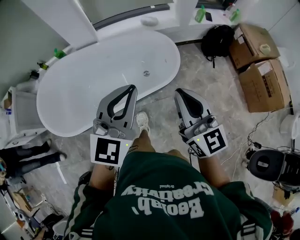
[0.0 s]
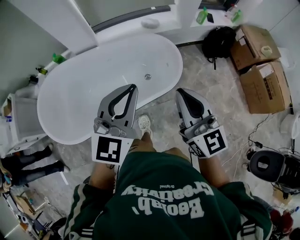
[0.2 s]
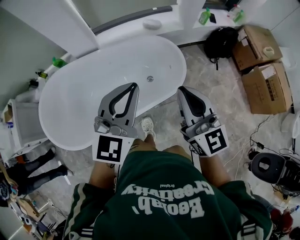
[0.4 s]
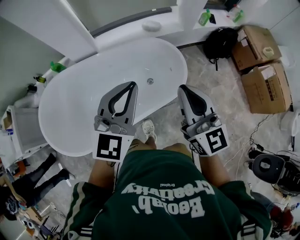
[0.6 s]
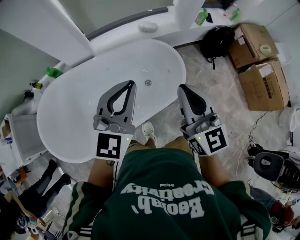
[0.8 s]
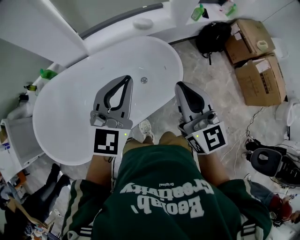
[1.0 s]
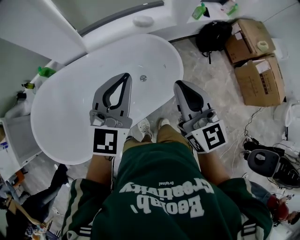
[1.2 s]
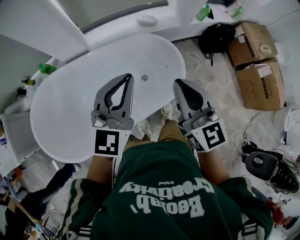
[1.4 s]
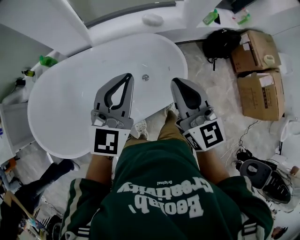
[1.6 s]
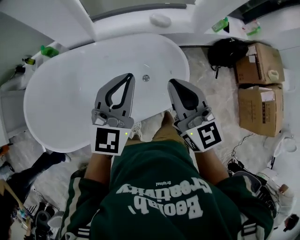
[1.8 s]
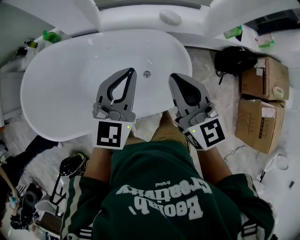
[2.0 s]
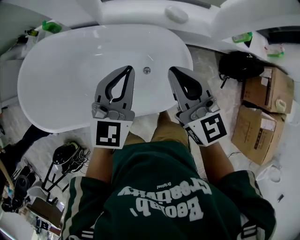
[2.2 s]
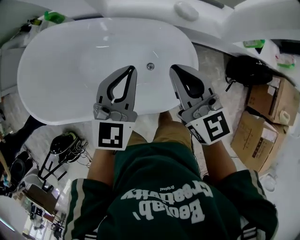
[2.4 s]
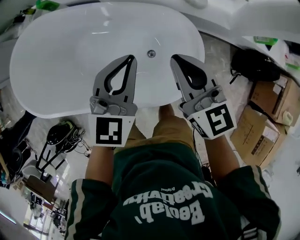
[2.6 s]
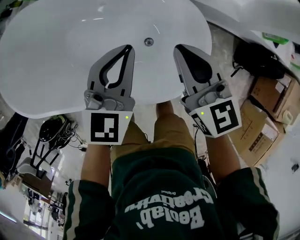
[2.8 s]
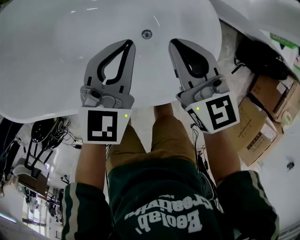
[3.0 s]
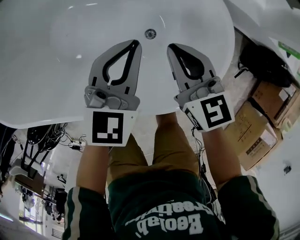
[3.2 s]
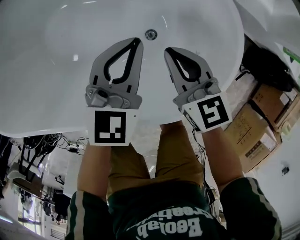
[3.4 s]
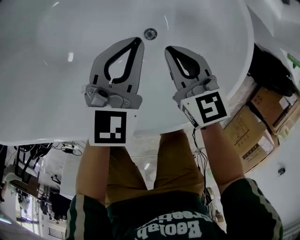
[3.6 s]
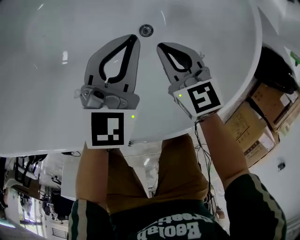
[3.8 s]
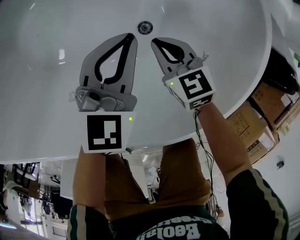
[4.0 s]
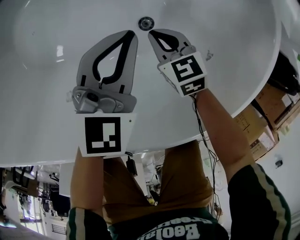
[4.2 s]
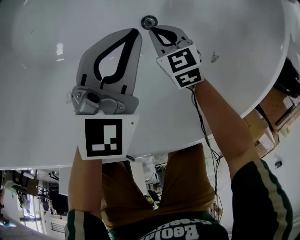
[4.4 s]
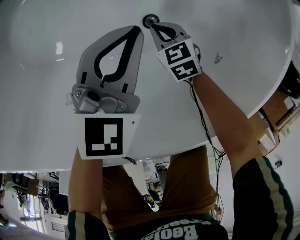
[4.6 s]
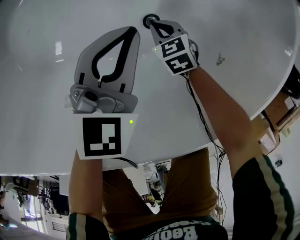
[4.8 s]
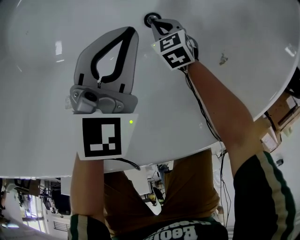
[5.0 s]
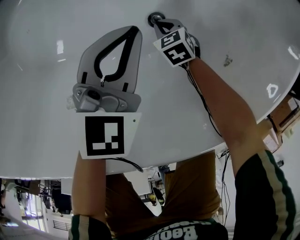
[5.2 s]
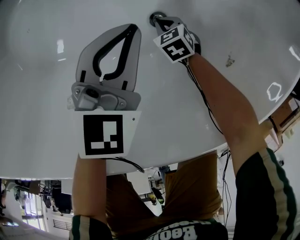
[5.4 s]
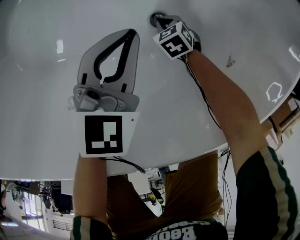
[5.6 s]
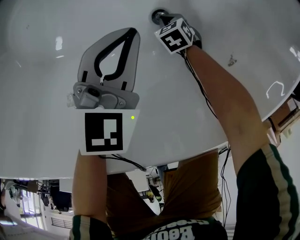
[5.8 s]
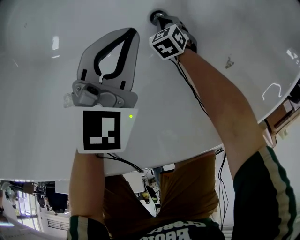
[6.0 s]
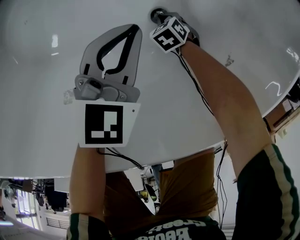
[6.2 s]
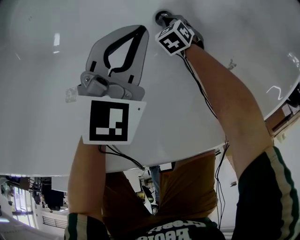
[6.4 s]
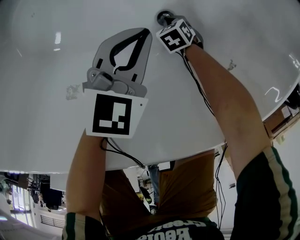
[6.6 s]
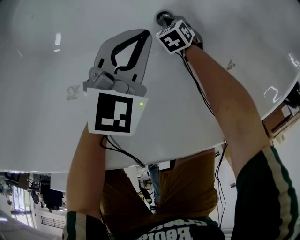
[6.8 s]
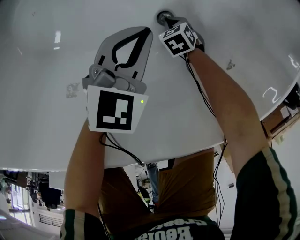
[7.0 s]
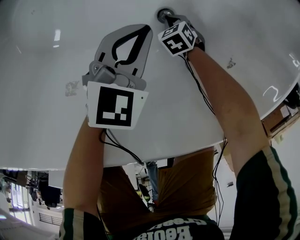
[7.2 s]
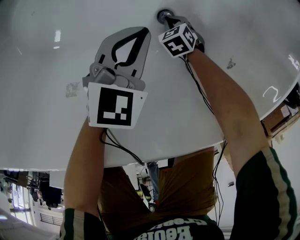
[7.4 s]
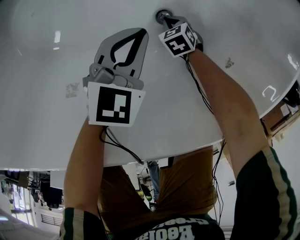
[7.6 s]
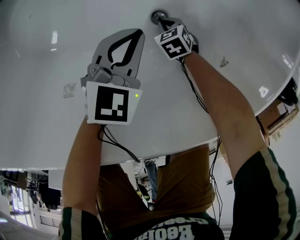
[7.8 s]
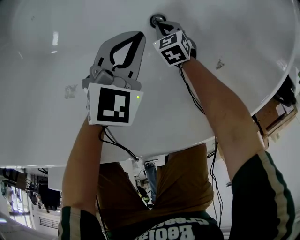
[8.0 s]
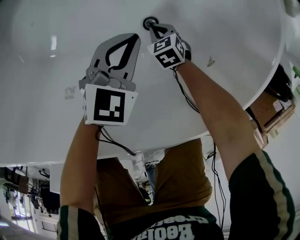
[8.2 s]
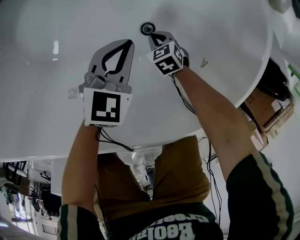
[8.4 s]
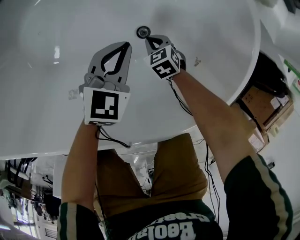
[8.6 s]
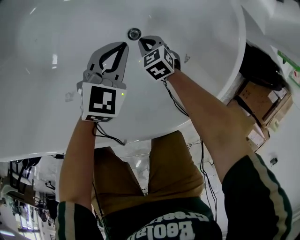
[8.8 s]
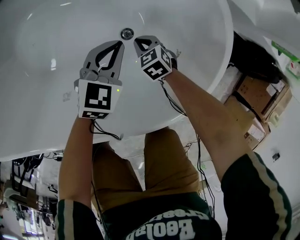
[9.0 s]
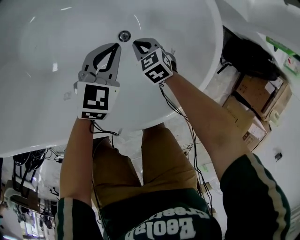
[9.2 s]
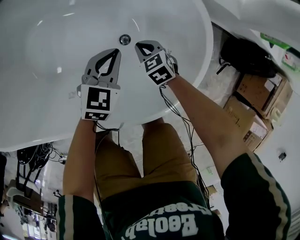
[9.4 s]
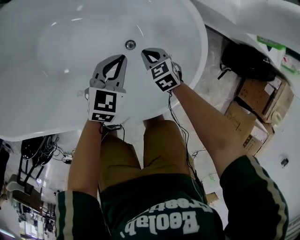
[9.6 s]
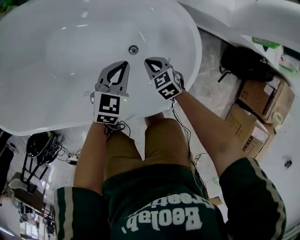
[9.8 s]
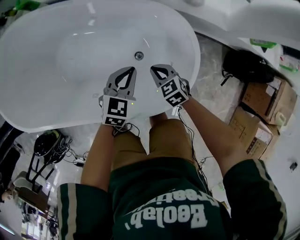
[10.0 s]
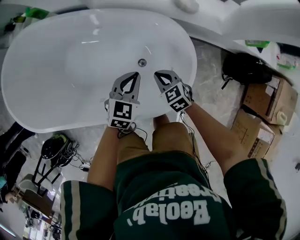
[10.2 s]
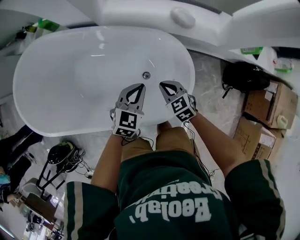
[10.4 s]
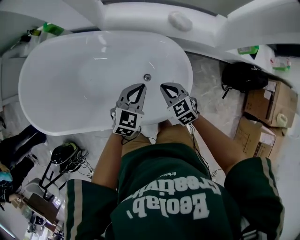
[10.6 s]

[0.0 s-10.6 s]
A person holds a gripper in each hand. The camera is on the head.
0.0 to 1.6 s: The two grippers go about 25 cm forward.
1.6 to 3.0 s: Both grippers move downward, about 35 cm. The right gripper rotates about 40 degrees; the left gripper rotates approximately 30 degrees.
3.0 to 4.6 s: The left gripper is displaced downward by some 25 cm; the right gripper heads downward, covering roughly 50 cm, and points its fingers about 30 degrees further downward.
4.6 to 6.0 s: The right gripper shifts roughly 15 cm downward, and turns by roughly 20 degrees; the left gripper travels downward by about 5 cm.
6.0 to 7.6 s: The grippers stay close to where they were, moving slightly.
7.6 to 9.0 s: The left gripper moves upward, about 10 cm, while the right gripper moves upward, about 20 cm.
9.0 to 10.6 s: The two grippers go about 35 cm upward. The right gripper swivels roughly 20 degrees.

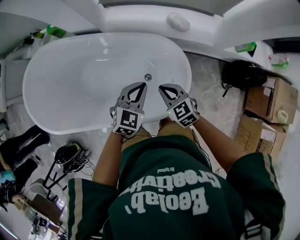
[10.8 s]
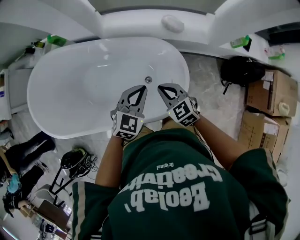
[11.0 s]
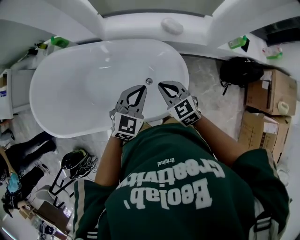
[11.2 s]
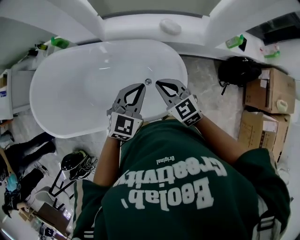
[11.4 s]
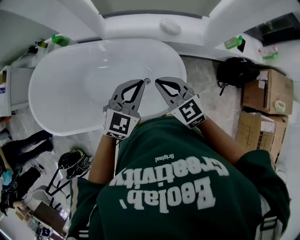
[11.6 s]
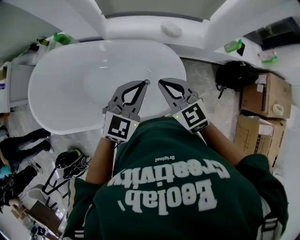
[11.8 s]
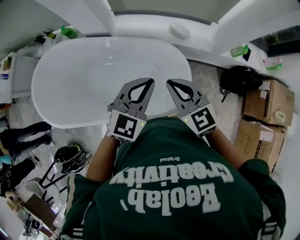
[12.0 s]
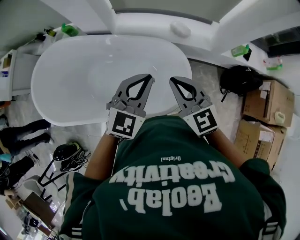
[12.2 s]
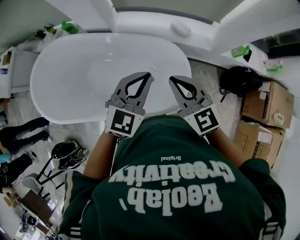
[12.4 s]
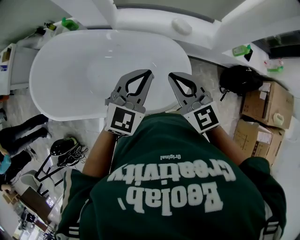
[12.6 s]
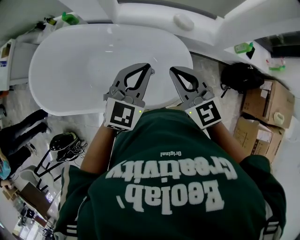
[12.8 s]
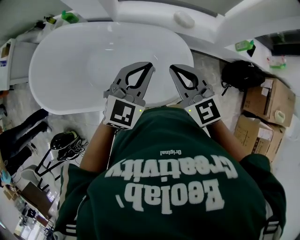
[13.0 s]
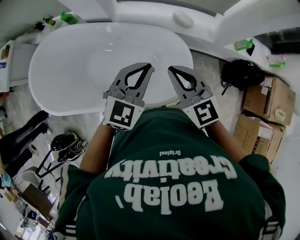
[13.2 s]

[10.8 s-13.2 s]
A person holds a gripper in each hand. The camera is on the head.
10.8 to 12.0 s: Both grippers move upward, about 20 cm.
12.0 to 13.2 s: The grippers make only small movements.

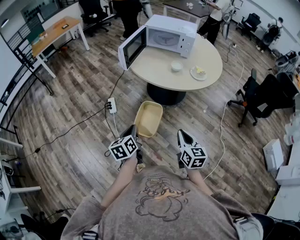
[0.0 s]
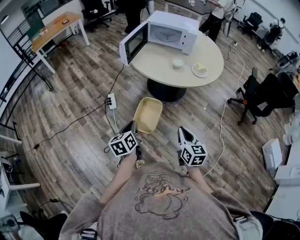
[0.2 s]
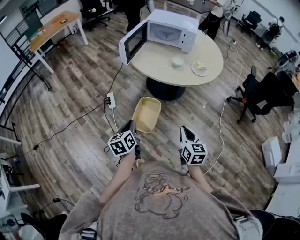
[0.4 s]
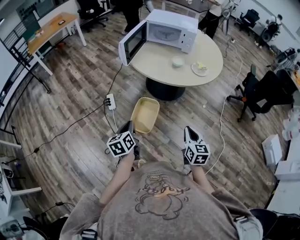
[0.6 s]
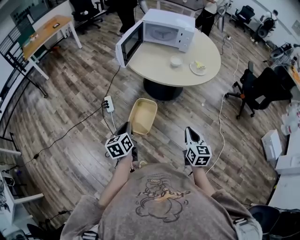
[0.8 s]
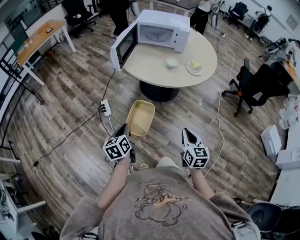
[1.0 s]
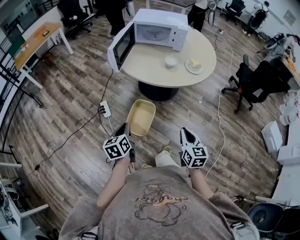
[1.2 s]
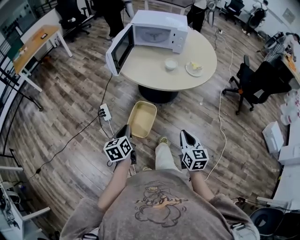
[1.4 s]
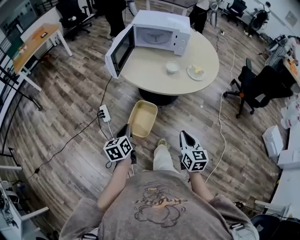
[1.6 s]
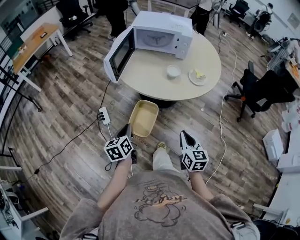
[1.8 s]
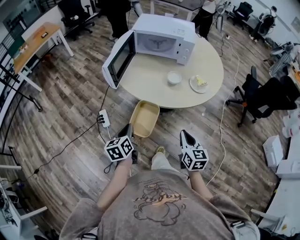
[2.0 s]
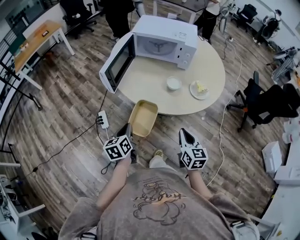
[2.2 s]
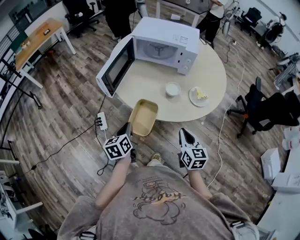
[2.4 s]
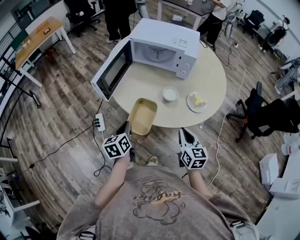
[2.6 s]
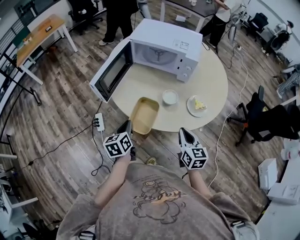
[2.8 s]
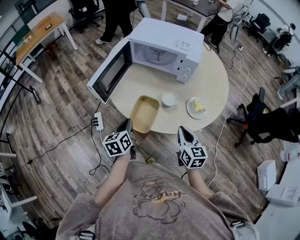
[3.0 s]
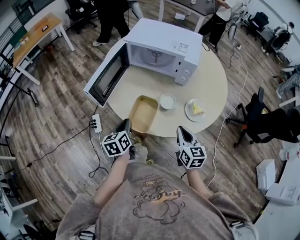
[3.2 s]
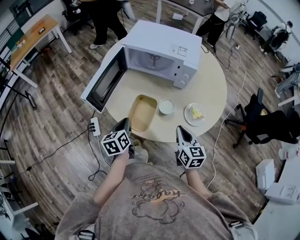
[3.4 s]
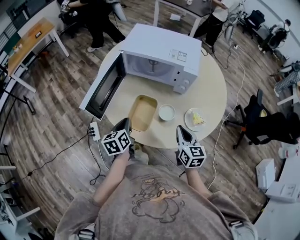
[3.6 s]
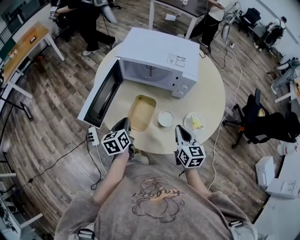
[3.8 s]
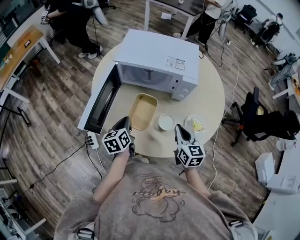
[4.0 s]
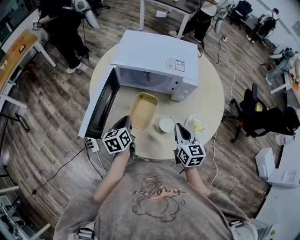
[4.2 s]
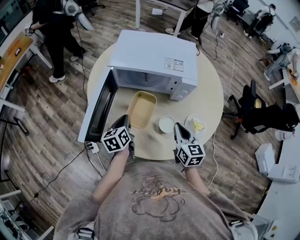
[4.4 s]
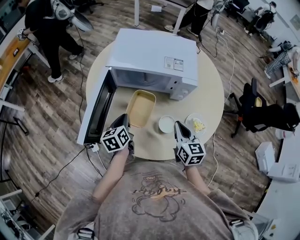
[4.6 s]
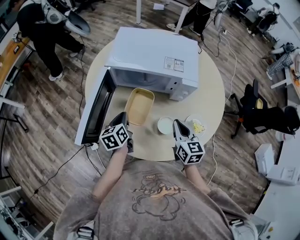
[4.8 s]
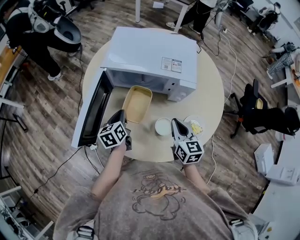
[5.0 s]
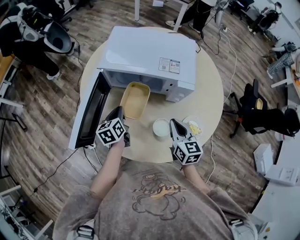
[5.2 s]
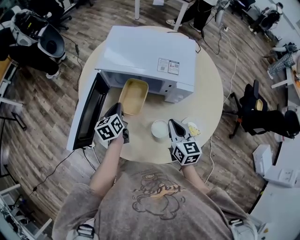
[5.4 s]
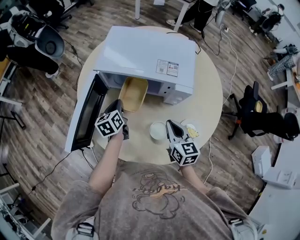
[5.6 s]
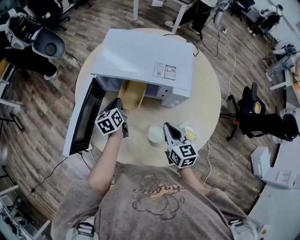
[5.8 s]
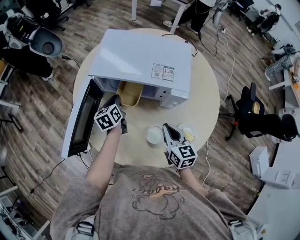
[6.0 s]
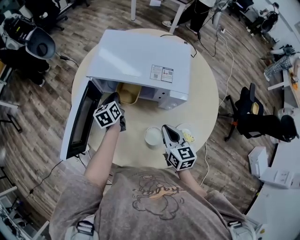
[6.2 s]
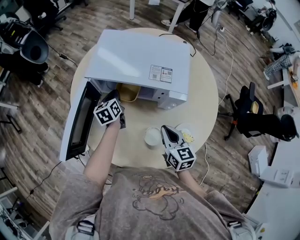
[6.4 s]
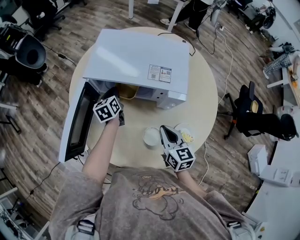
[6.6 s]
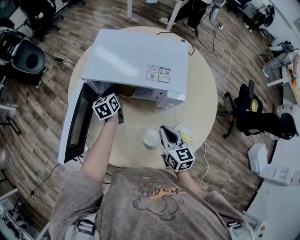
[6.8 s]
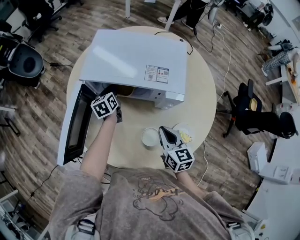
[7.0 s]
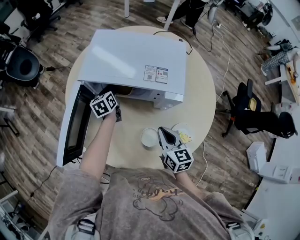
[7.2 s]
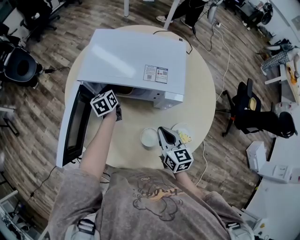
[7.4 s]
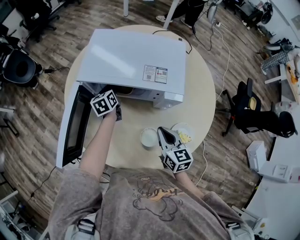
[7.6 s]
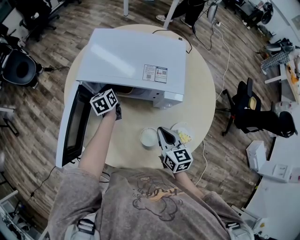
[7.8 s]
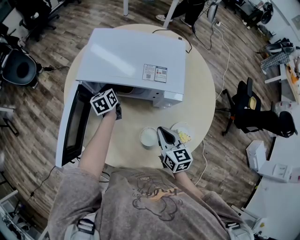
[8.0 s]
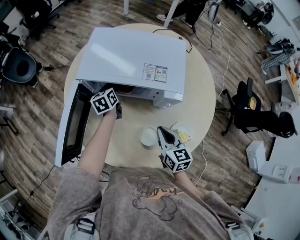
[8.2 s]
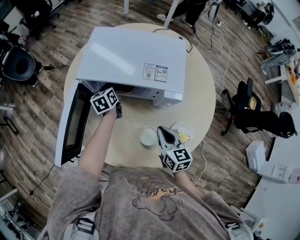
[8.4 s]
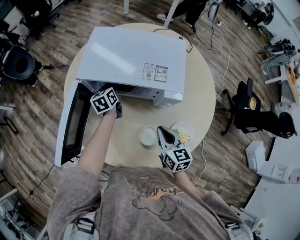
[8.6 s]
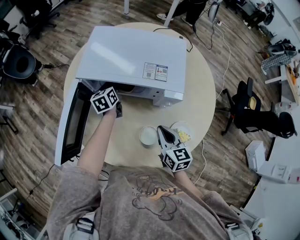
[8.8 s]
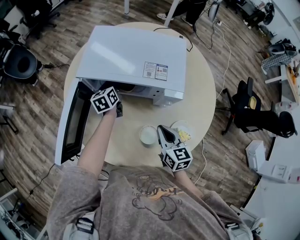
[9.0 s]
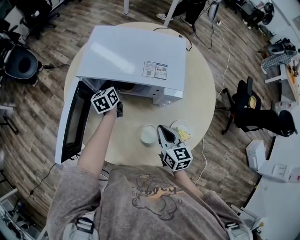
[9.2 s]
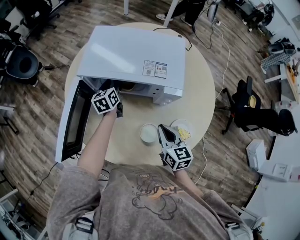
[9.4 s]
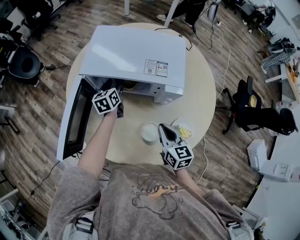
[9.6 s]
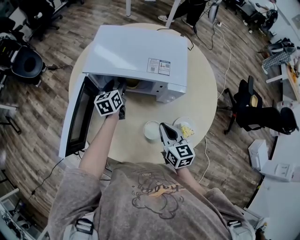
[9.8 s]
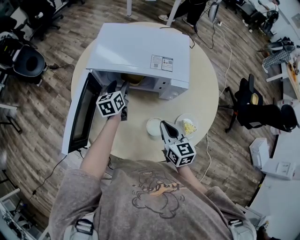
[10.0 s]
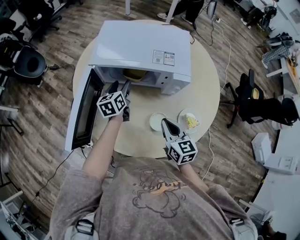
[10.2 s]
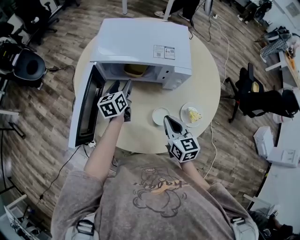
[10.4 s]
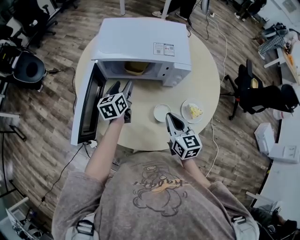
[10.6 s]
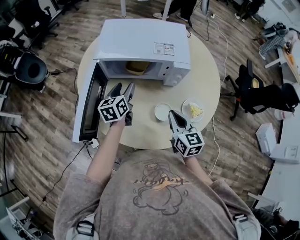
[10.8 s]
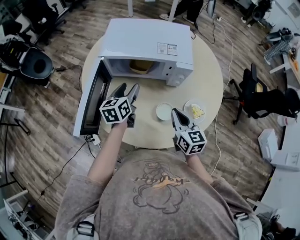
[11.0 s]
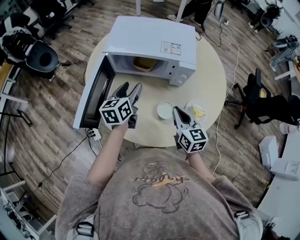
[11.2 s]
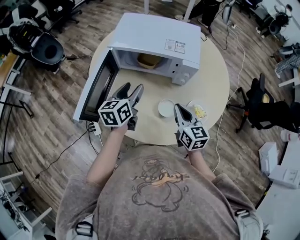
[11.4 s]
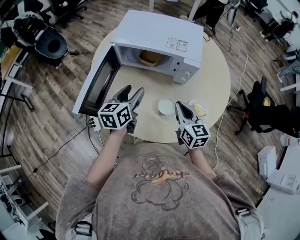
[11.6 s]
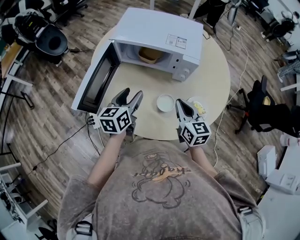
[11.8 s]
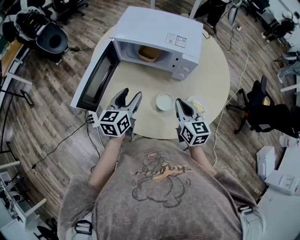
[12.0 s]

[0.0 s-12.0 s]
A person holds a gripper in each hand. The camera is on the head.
0.0 to 1.6 s: The right gripper shifts some 10 cm forward. Meanwhile the left gripper is displaced forward by about 15 cm.
1.6 to 3.0 s: The right gripper heads forward, covering about 30 cm. The left gripper heads forward and to the right, covering some 25 cm.
3.0 to 4.4 s: The two grippers go roughly 20 cm forward.
4.4 to 6.0 s: The right gripper goes some 5 cm forward. Meanwhile the left gripper shifts approximately 15 cm forward.
6.0 to 7.6 s: The left gripper goes some 10 cm forward.
7.6 to 9.0 s: The grippers move only a little.
9.0 to 10.4 s: The right gripper goes approximately 5 cm backward, while the left gripper moves backward, some 10 cm, and opens its fingers.
10.4 to 12.0 s: The left gripper is displaced backward and upward by roughly 20 cm.
